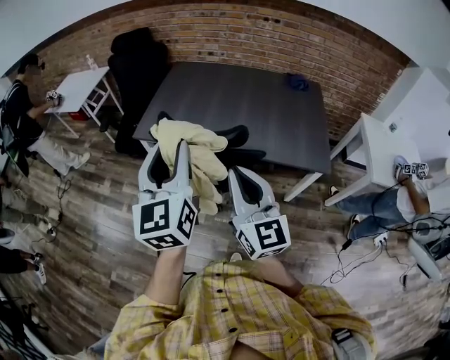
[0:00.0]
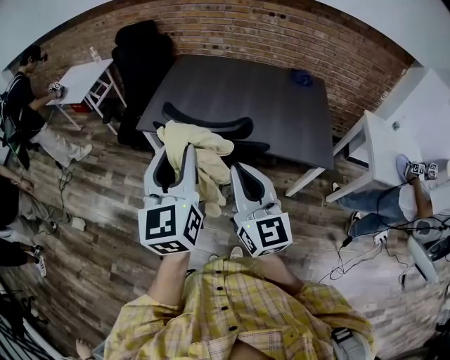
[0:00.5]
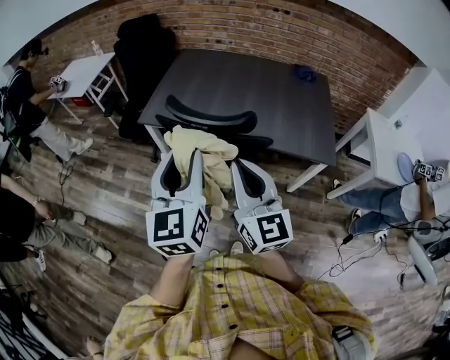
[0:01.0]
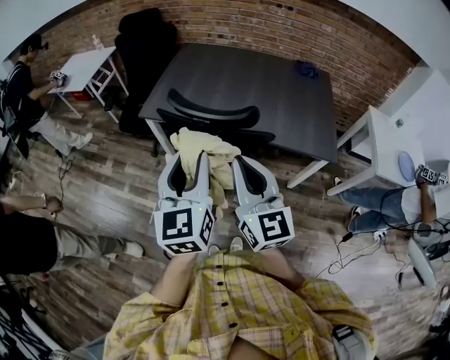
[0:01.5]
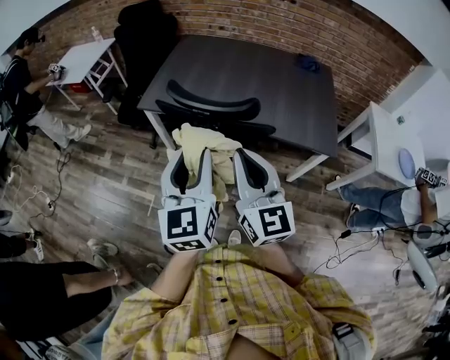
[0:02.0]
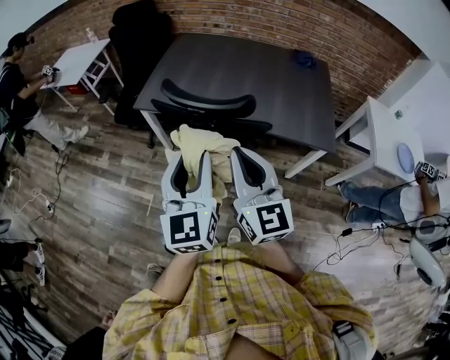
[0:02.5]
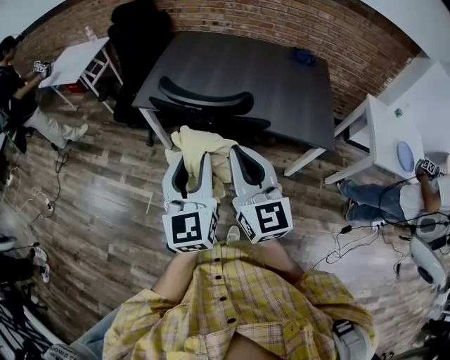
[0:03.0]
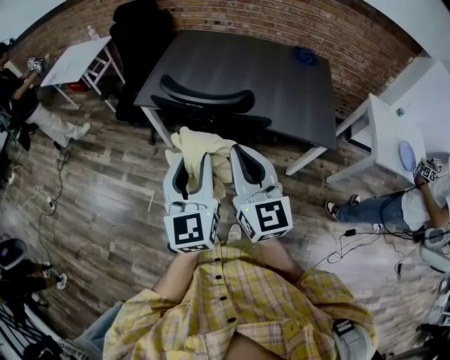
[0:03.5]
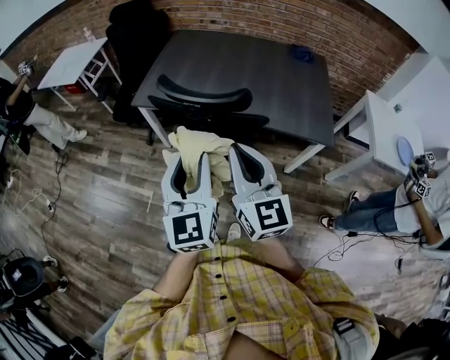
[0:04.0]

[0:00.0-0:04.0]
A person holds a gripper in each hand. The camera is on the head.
0:00.0 to 0:02.0: The left gripper goes roughly 10 cm downward and backward.
0:02.0 to 0:04.0: The grippers stay close to where they were, moving slightly.

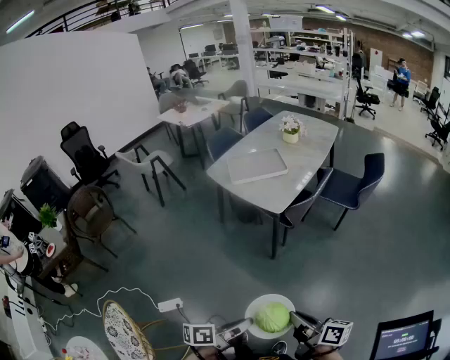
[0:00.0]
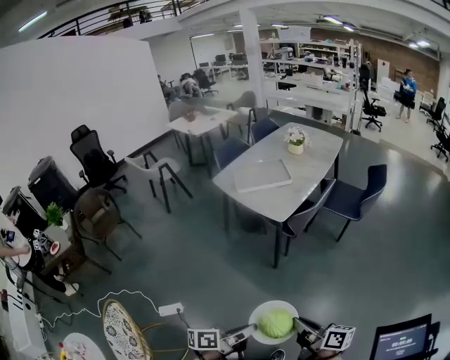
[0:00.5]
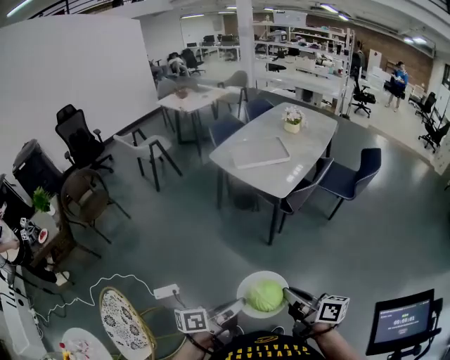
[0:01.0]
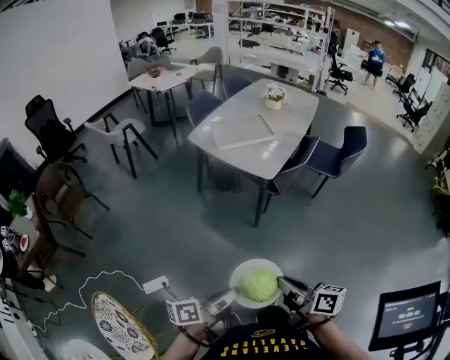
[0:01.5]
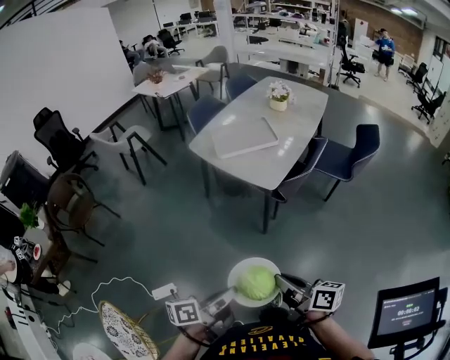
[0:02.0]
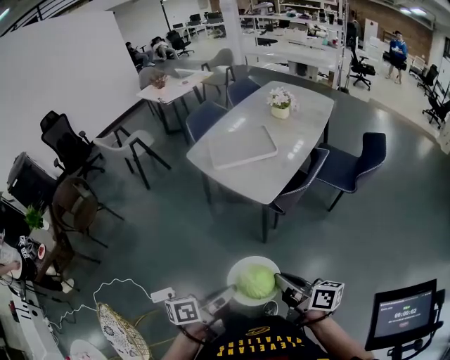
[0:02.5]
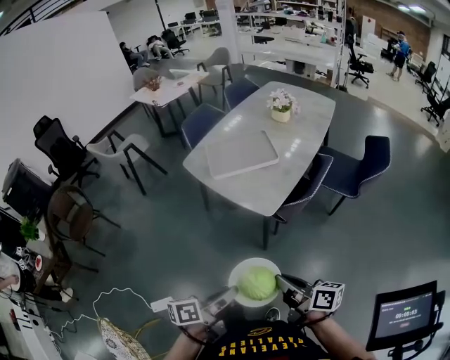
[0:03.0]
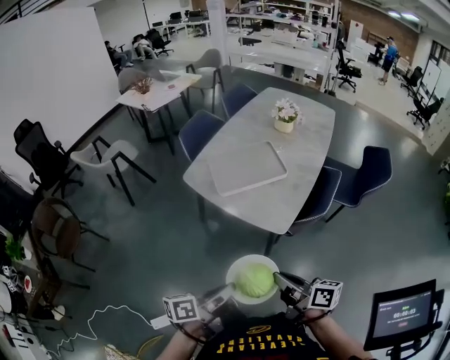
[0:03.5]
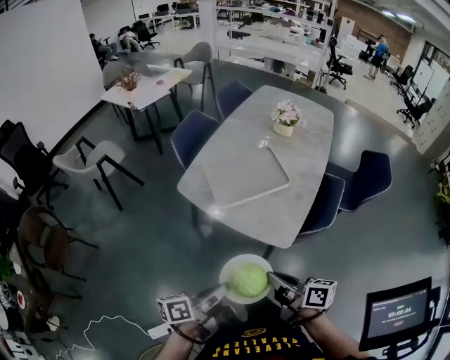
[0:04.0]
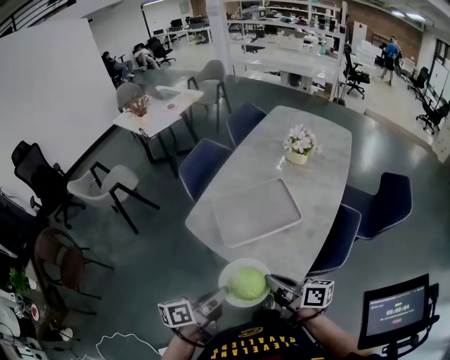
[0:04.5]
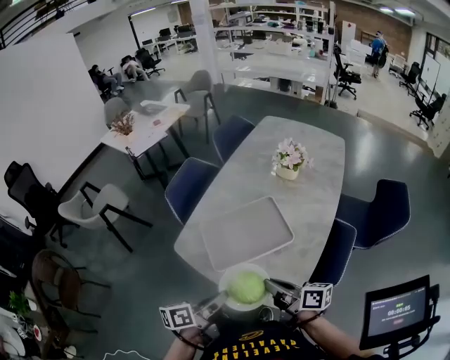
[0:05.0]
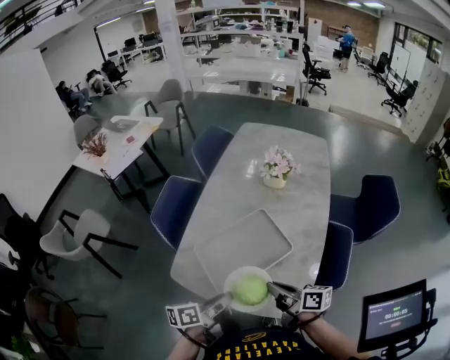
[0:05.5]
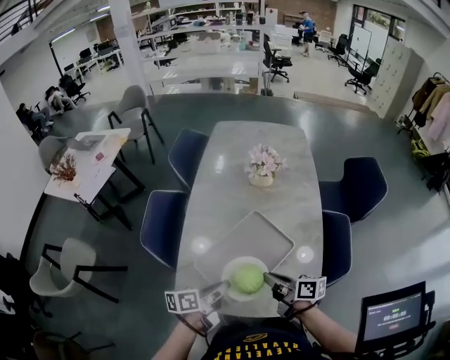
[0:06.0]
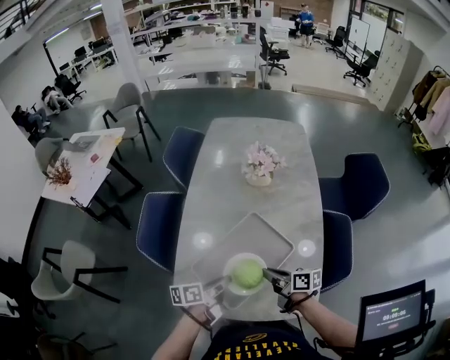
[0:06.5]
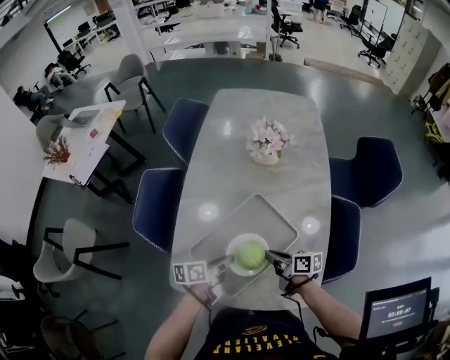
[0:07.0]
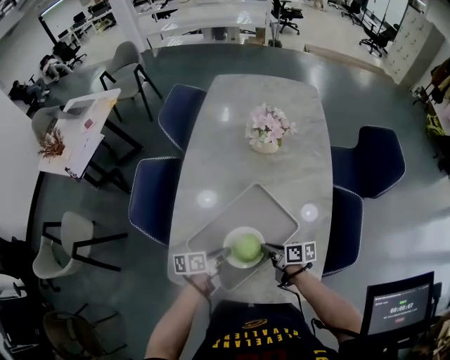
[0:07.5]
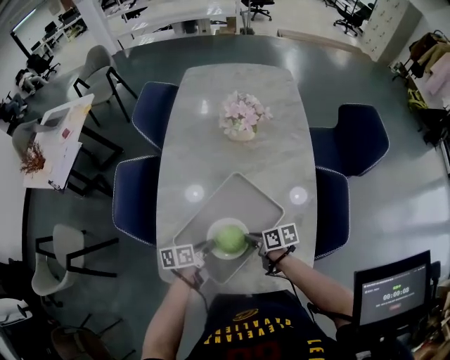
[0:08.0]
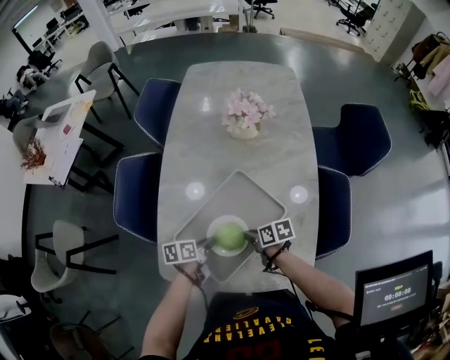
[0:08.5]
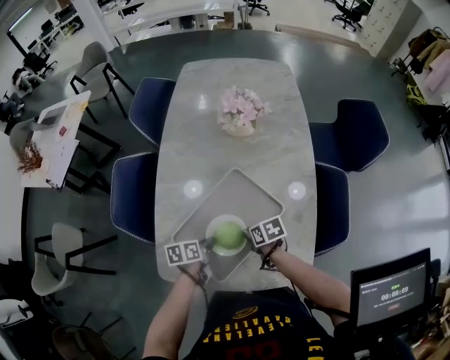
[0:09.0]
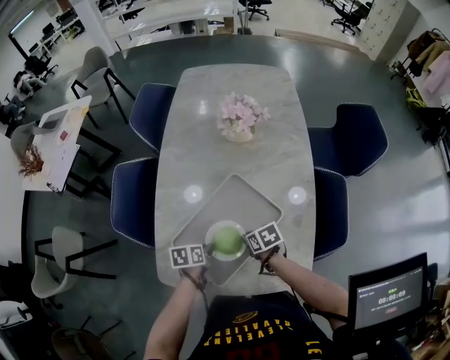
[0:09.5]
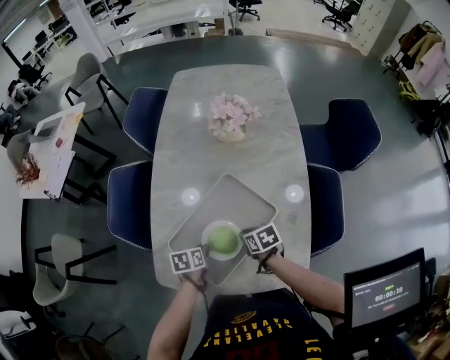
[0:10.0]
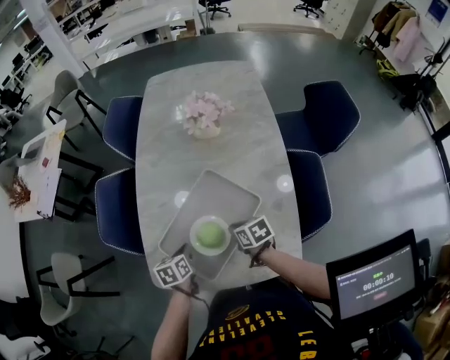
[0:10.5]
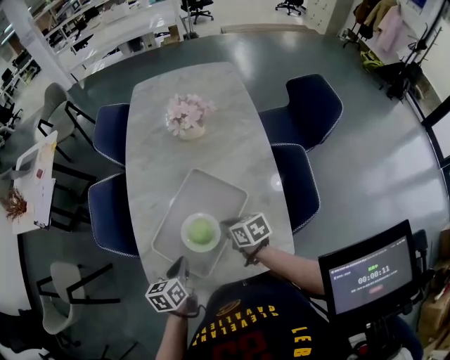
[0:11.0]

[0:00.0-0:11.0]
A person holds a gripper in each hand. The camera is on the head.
0:00.0 to 0:02.0: The grippers both shift forward and to the left by some 15 cm.
0:02.0 to 0:03.5: Both grippers travel together forward, roughly 25 cm.
0:03.5 to 0:05.5: The pair of grippers is taken forward, about 40 cm.
0:05.5 to 0:07.5: The left gripper is displaced forward and downward by about 25 cm, and rotates about 20 degrees. The right gripper goes approximately 25 cm downward and forward, and rotates approximately 20 degrees.
0:07.5 to 0:09.0: The right gripper changes its angle by roughly 30 degrees.
0:09.0 to 0:11.0: The right gripper is displaced upward by approximately 5 cm. Meanwhile the left gripper heads upward and backward, covering approximately 10 cm, and turns by some 20 degrees.

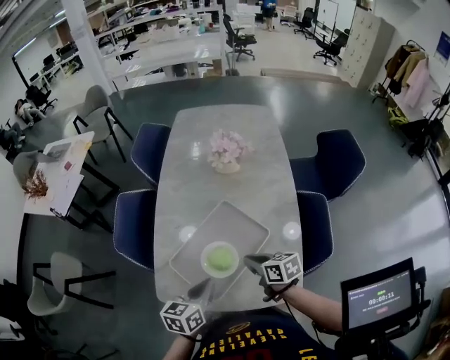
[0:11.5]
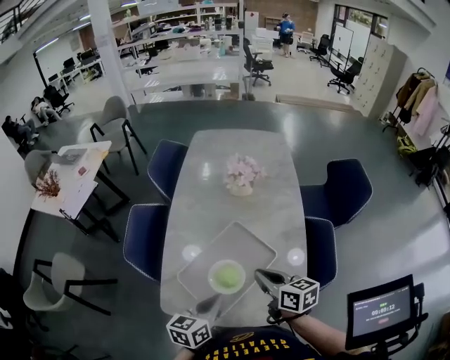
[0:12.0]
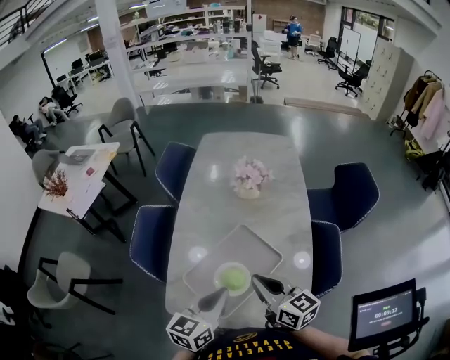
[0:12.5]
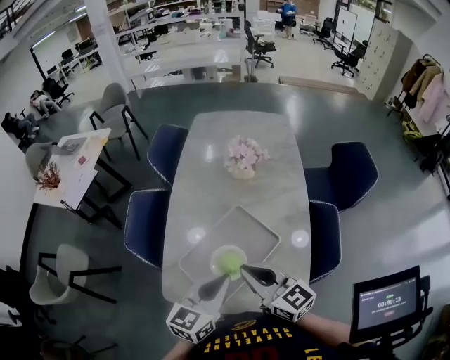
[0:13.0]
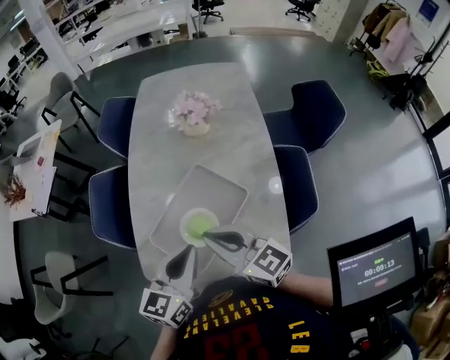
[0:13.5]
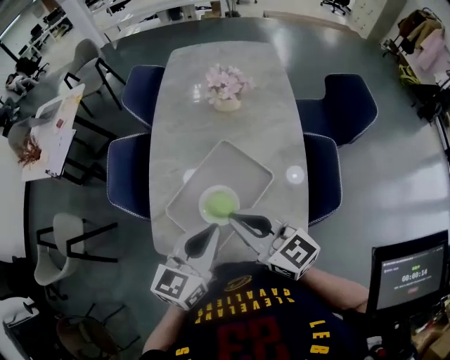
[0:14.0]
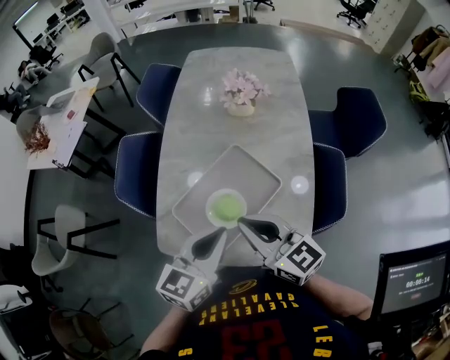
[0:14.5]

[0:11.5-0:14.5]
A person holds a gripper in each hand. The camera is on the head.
0:11.5 to 0:13.0: The left gripper travels upward by some 10 cm, and changes its angle by approximately 20 degrees; the right gripper is displaced upward by roughly 15 cm, and changes its angle by some 40 degrees.
0:13.0 to 0:14.5: The grippers move only a little.

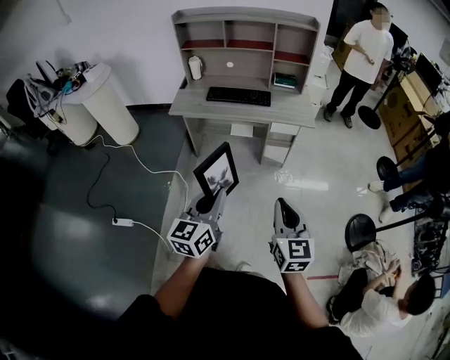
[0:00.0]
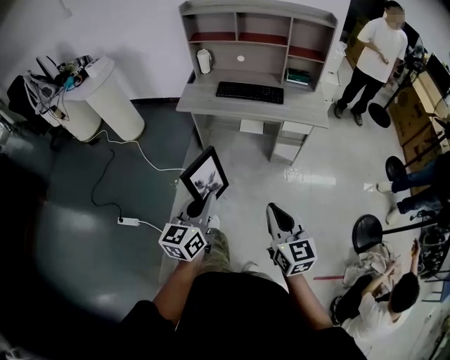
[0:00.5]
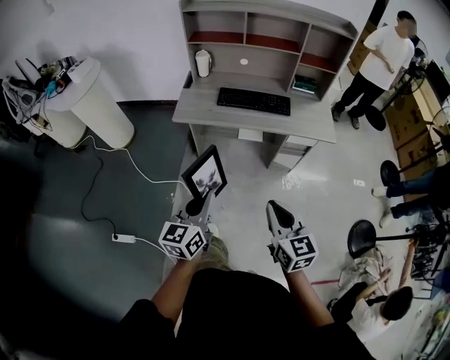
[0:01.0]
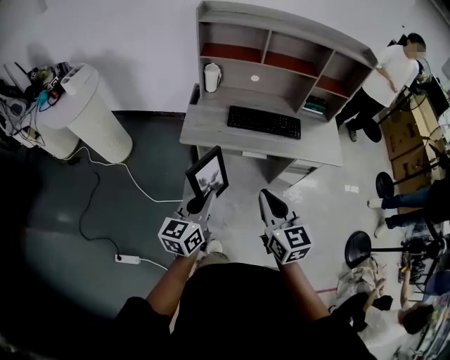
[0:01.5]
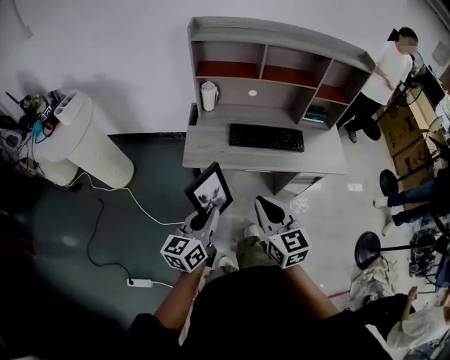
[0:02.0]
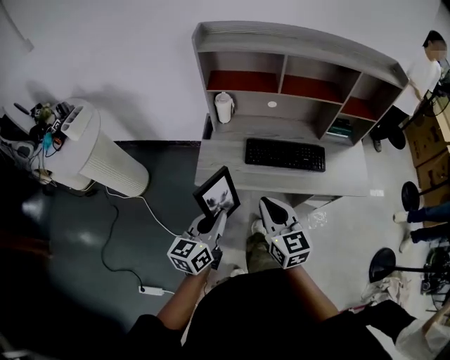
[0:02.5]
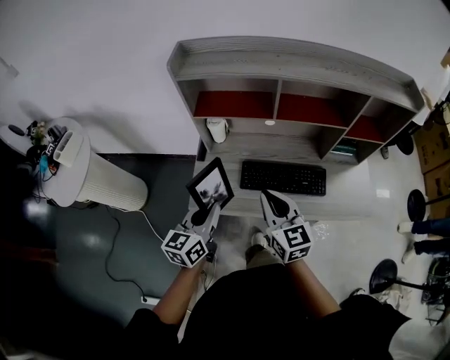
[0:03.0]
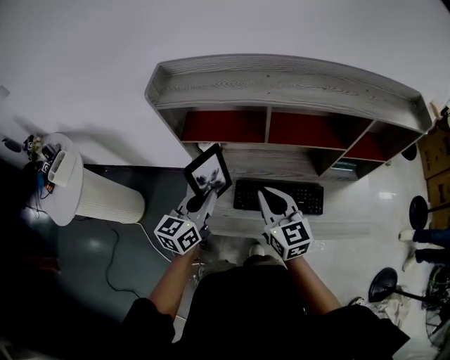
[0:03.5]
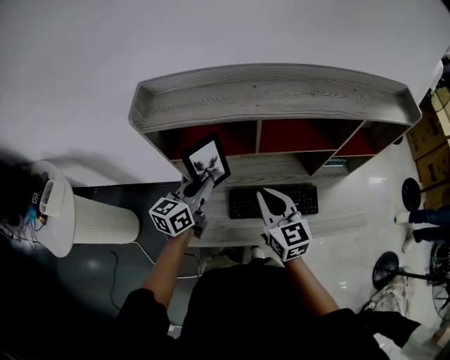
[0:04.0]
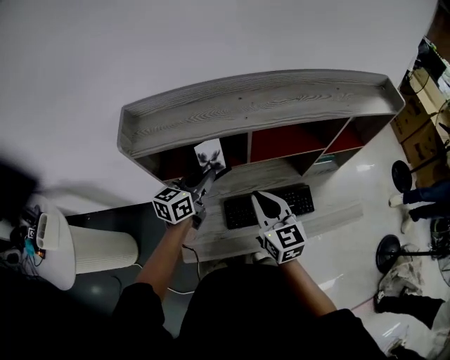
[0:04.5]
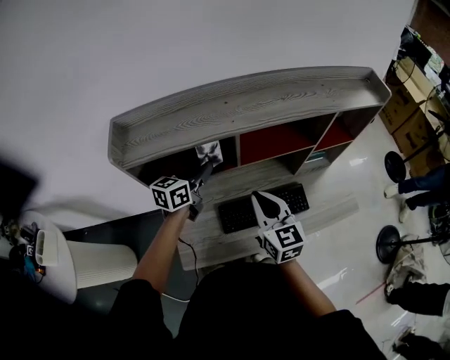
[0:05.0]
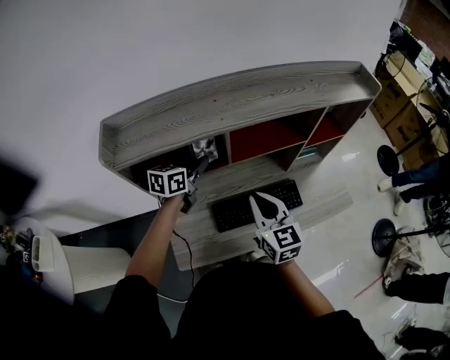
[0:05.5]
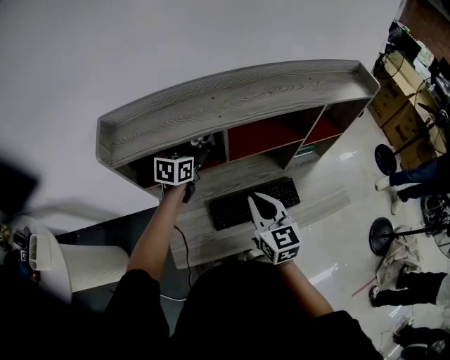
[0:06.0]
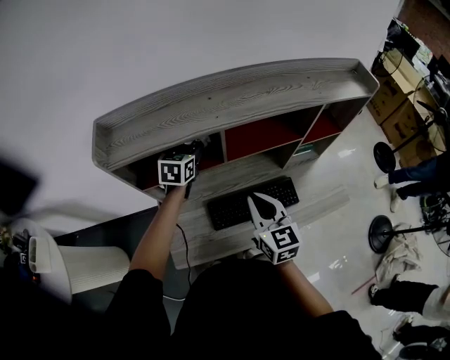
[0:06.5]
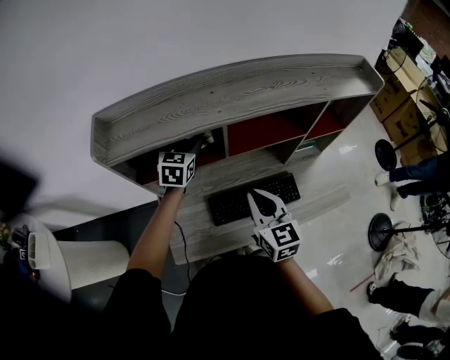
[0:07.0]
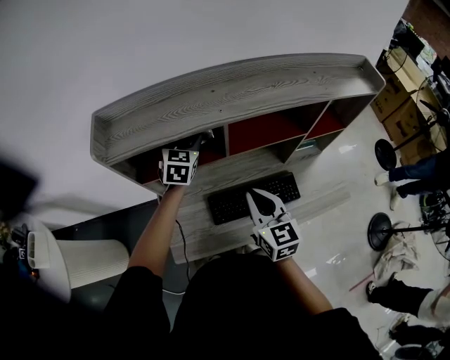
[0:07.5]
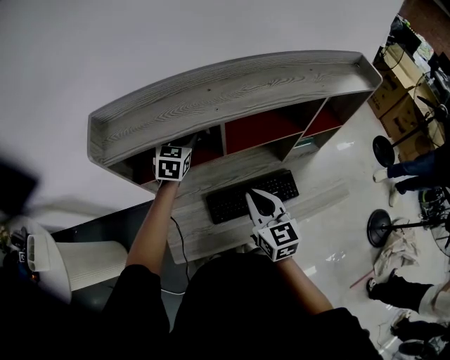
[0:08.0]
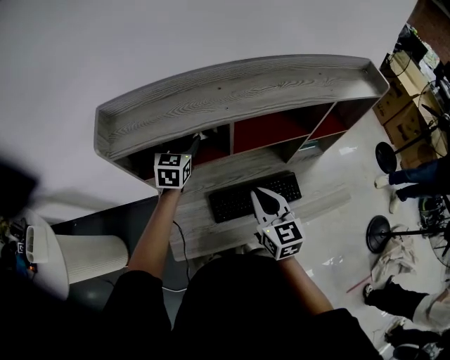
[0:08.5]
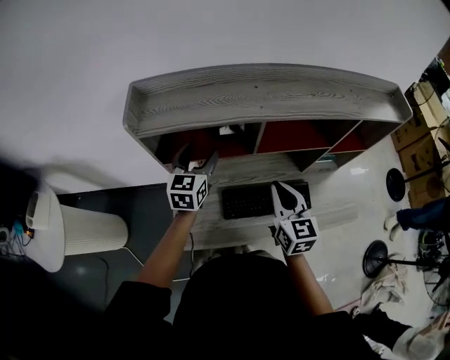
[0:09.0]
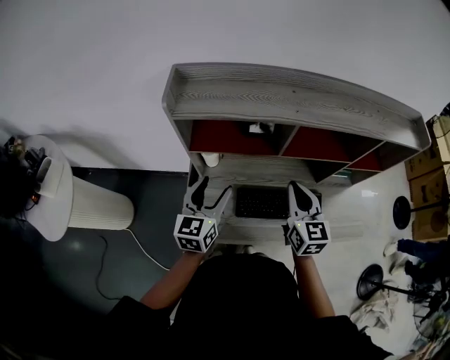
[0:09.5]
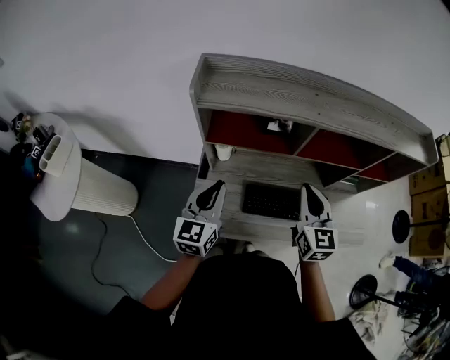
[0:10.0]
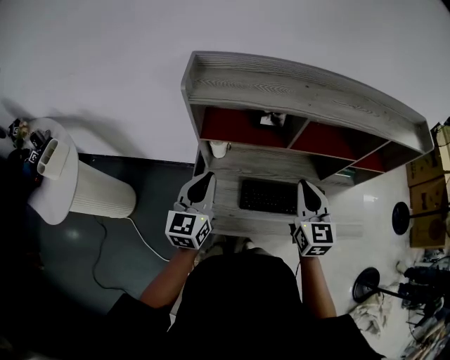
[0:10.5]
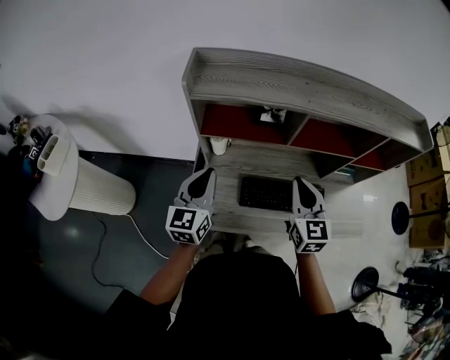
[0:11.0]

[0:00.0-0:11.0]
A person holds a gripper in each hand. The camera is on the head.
0:00.0 to 0:02.0: Both grippers are carried forward and to the left, roughly 50 cm.
0:02.0 to 0:03.5: The two grippers travel together, forward, about 40 cm.
0:03.5 to 0:05.5: The left gripper changes place by approximately 25 cm, and turns by approximately 30 degrees. The right gripper ends up roughly 5 cm from where it was, and rotates about 20 degrees.
0:05.5 to 0:07.5: The left gripper is displaced forward by approximately 5 cm, changes its angle by approximately 40 degrees, and opens.
0:07.5 to 0:09.0: The left gripper moves backward and to the left, about 10 cm.
0:09.0 to 0:11.0: The left gripper travels backward and to the left by about 20 cm, and closes.
